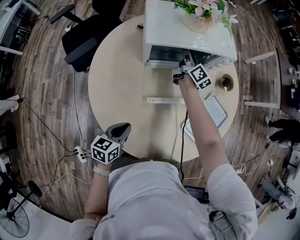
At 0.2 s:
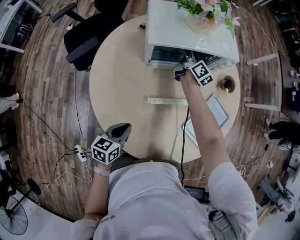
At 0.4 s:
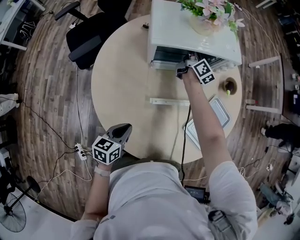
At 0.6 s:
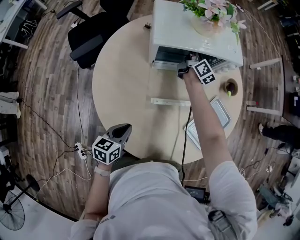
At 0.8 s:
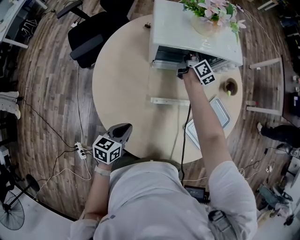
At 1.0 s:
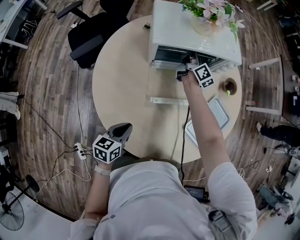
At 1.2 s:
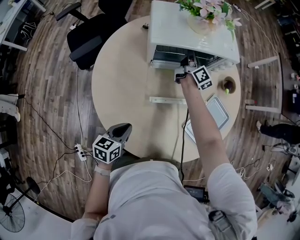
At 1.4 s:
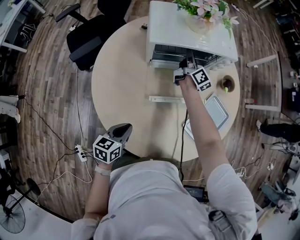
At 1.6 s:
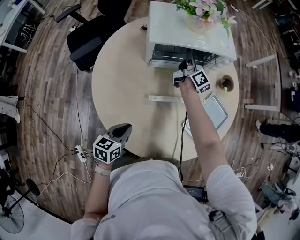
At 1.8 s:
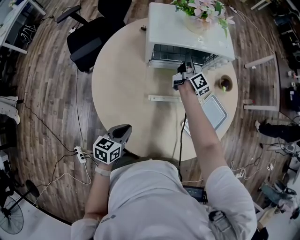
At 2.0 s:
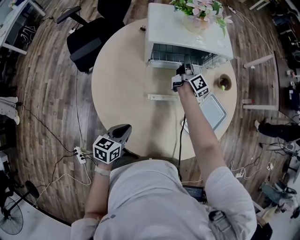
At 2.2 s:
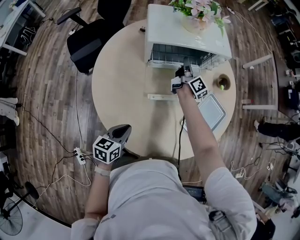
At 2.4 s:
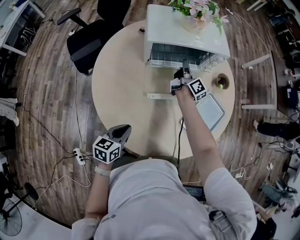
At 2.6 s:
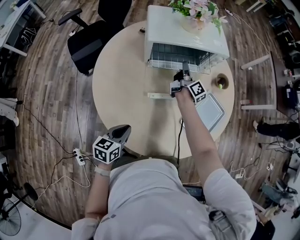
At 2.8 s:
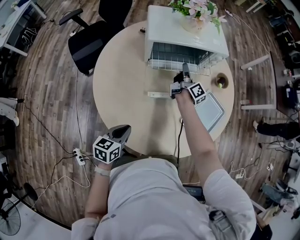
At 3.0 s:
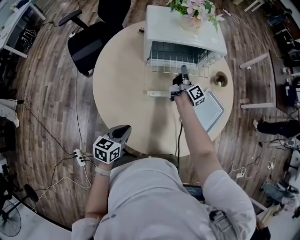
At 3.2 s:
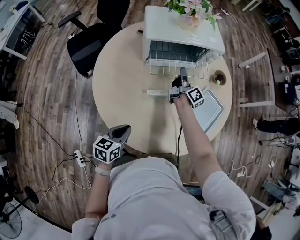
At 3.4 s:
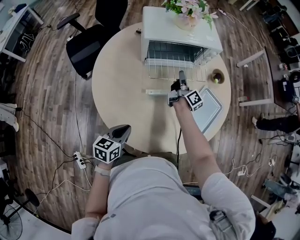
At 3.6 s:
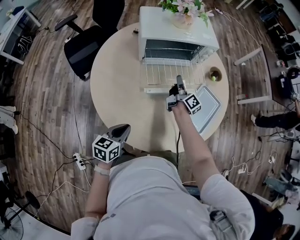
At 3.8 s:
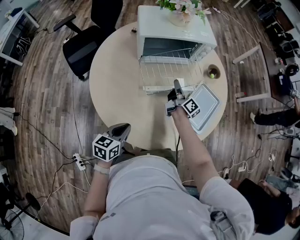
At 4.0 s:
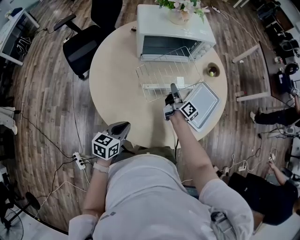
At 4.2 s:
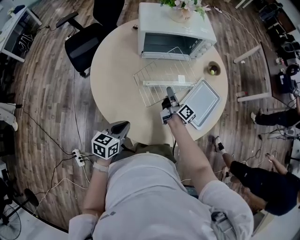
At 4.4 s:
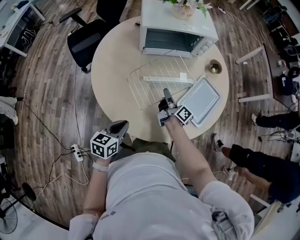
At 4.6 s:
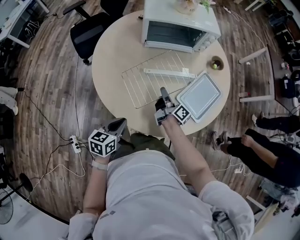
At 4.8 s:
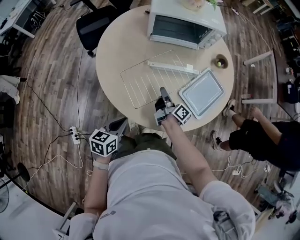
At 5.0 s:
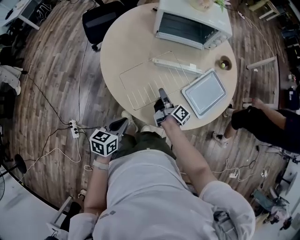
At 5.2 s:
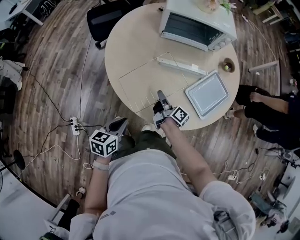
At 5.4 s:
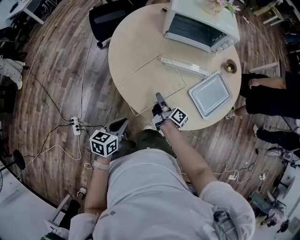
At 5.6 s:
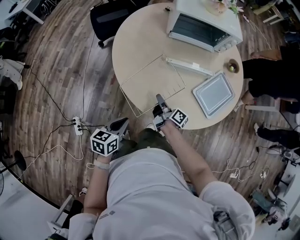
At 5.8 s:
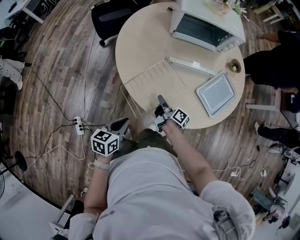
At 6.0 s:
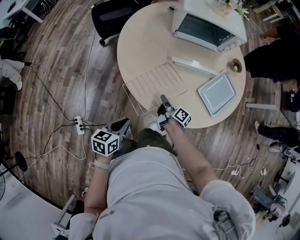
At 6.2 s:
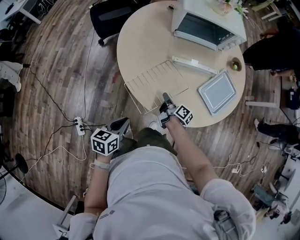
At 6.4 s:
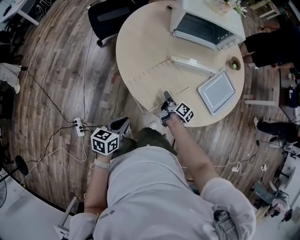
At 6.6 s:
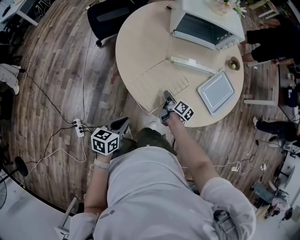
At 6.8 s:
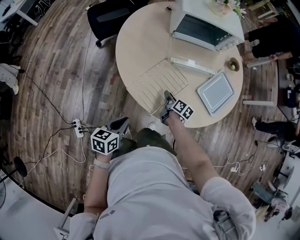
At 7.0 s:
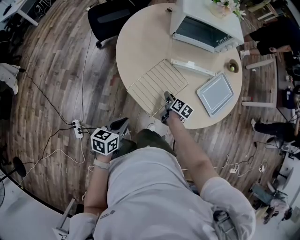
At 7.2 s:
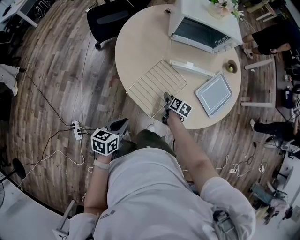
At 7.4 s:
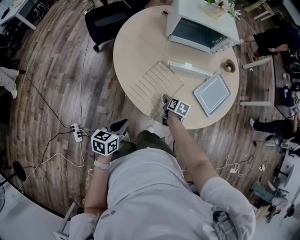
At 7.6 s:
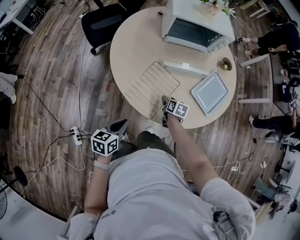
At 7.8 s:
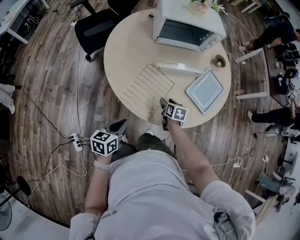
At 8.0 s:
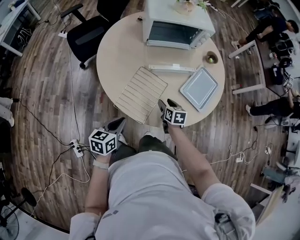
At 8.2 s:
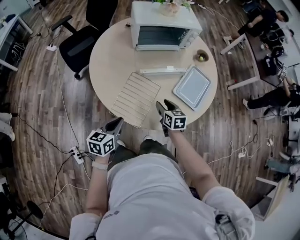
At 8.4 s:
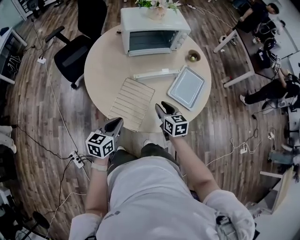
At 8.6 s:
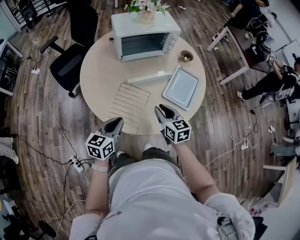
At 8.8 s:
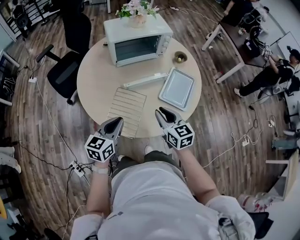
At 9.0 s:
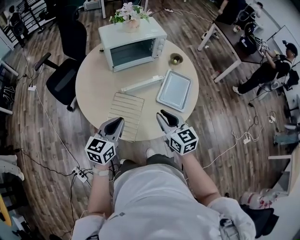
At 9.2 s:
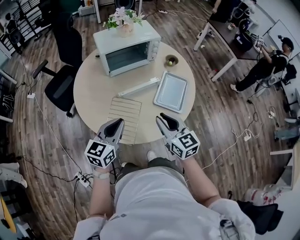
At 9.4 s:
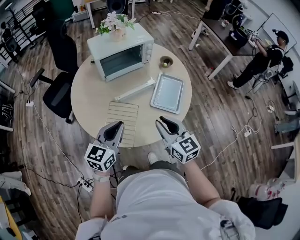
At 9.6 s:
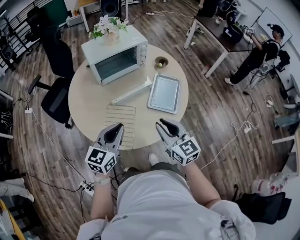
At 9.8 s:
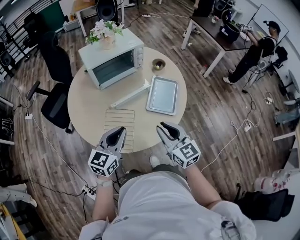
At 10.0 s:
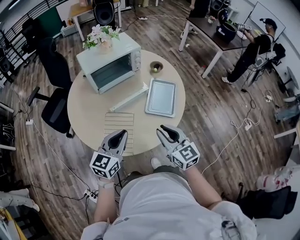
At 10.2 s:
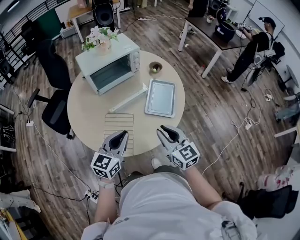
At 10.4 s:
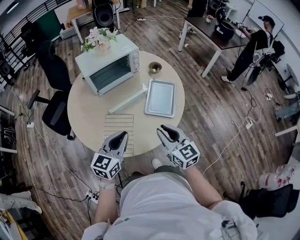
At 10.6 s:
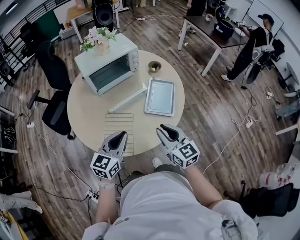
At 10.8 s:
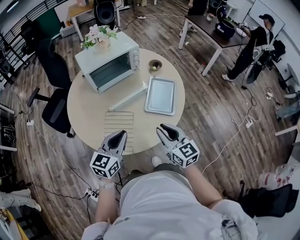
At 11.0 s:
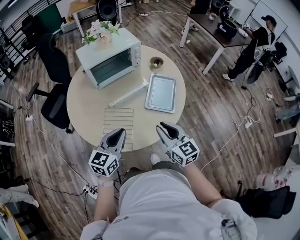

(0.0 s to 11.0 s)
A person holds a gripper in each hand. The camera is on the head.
0.0 s - 1.6 s: The right gripper closes.
1.6 s - 3.2 s: The right gripper is displaced backward by roughly 10 cm, while the left gripper moves roughly 5 cm.
3.2 s - 4.8 s: The left gripper travels backward and to the right by approximately 15 cm, while the right gripper goes roughly 25 cm backward, and turns by roughly 30 degrees.
4.8 s - 6.2 s: The left gripper travels to the left and backward by some 10 cm; the right gripper shifts roughly 15 cm downward, to the left and backward, and rotates some 20 degrees.
6.2 s - 7.8 s: The right gripper heads to the right, covering roughly 5 cm, points its fingers about 30 degrees further downward, and opens its fingers.
7.8 s - 9.4 s: The right gripper shifts approximately 30 cm upward, points its fingers about 40 degrees further upward, and closes its fingers; the left gripper heads upward, forward and to the right, covering approximately 25 cm, and turns by some 40 degrees.
9.4 s - 11.0 s: The grippers move only a little.

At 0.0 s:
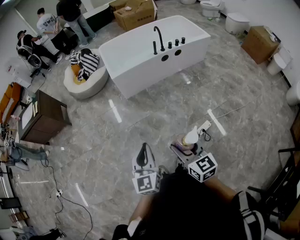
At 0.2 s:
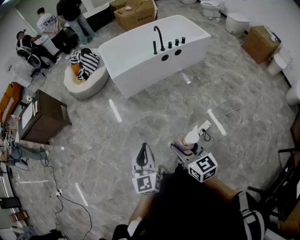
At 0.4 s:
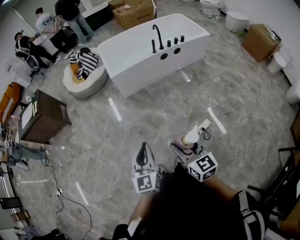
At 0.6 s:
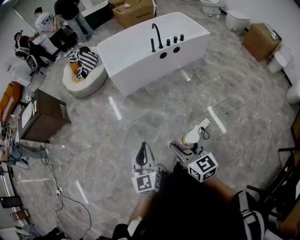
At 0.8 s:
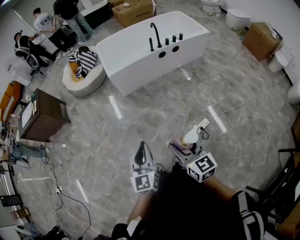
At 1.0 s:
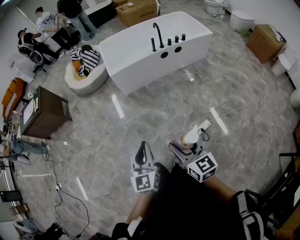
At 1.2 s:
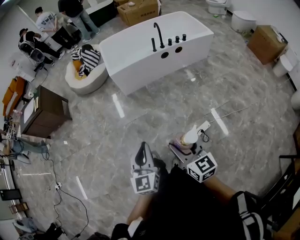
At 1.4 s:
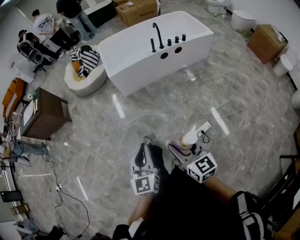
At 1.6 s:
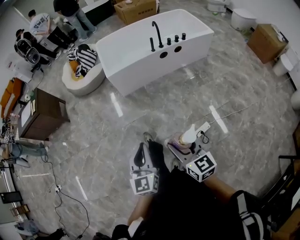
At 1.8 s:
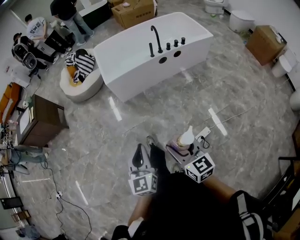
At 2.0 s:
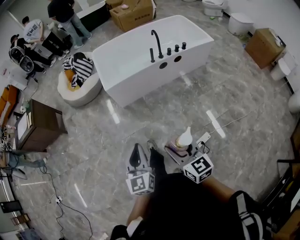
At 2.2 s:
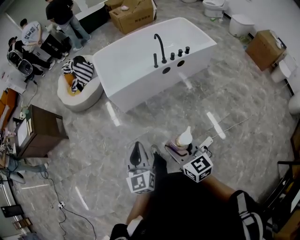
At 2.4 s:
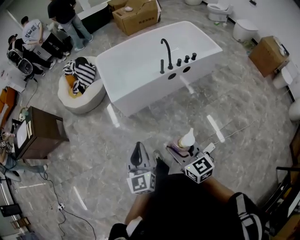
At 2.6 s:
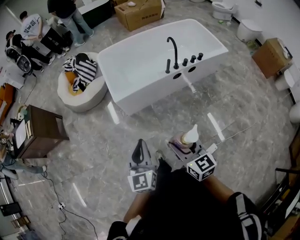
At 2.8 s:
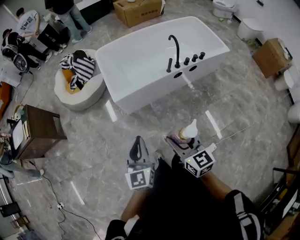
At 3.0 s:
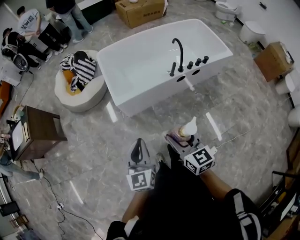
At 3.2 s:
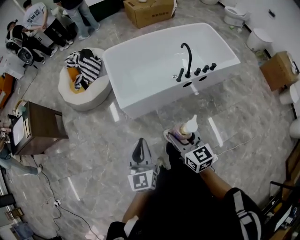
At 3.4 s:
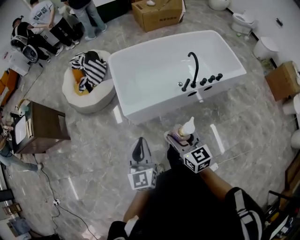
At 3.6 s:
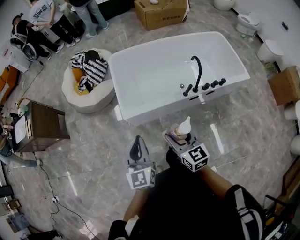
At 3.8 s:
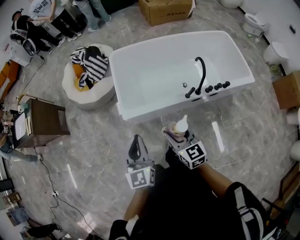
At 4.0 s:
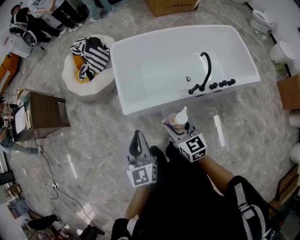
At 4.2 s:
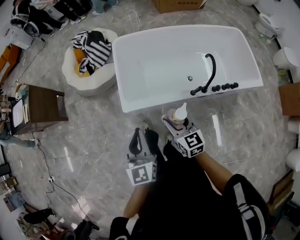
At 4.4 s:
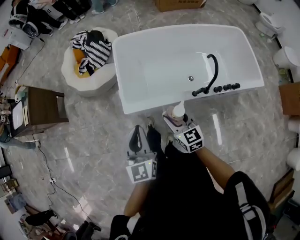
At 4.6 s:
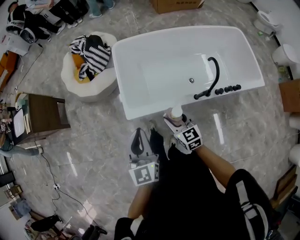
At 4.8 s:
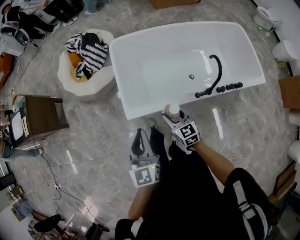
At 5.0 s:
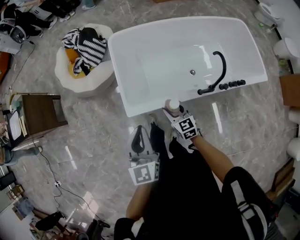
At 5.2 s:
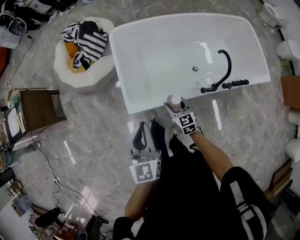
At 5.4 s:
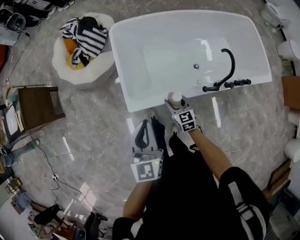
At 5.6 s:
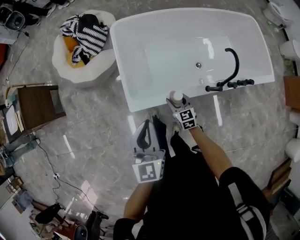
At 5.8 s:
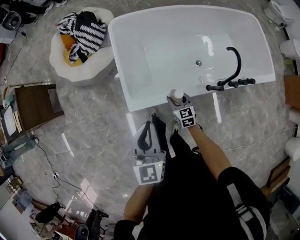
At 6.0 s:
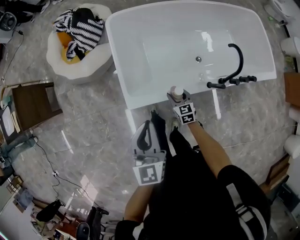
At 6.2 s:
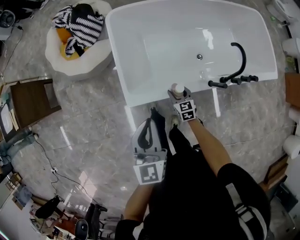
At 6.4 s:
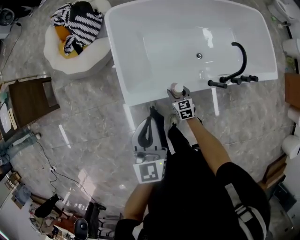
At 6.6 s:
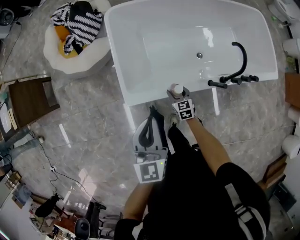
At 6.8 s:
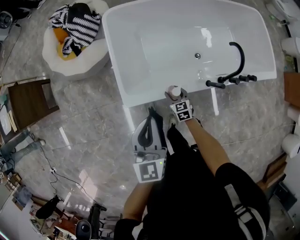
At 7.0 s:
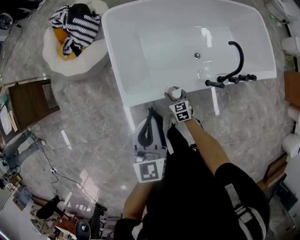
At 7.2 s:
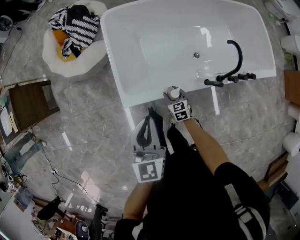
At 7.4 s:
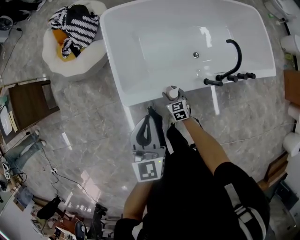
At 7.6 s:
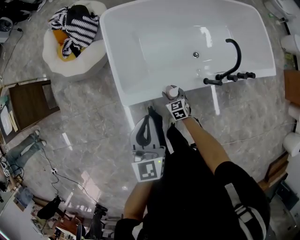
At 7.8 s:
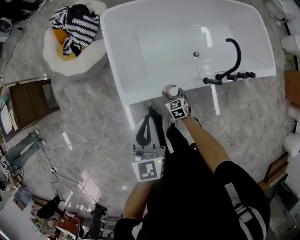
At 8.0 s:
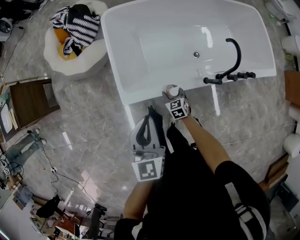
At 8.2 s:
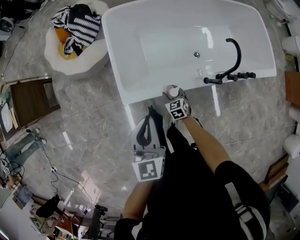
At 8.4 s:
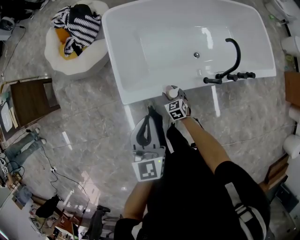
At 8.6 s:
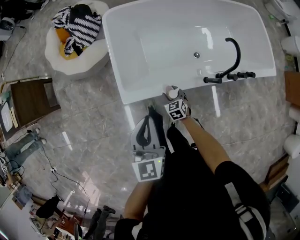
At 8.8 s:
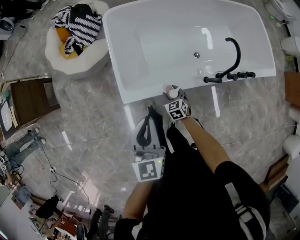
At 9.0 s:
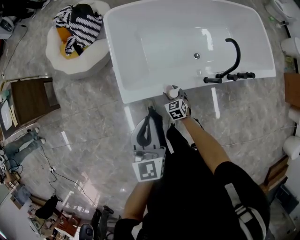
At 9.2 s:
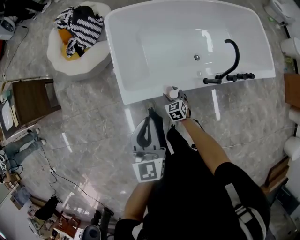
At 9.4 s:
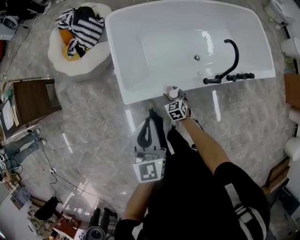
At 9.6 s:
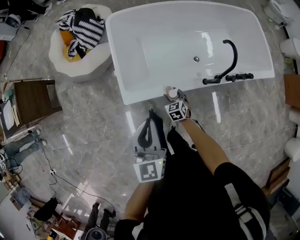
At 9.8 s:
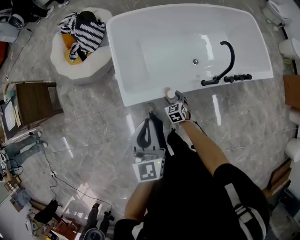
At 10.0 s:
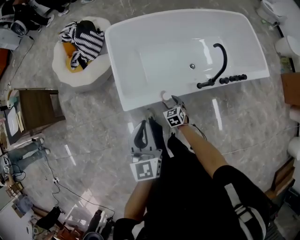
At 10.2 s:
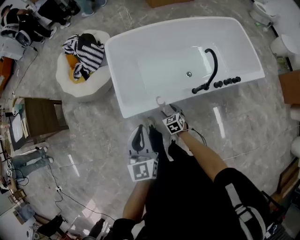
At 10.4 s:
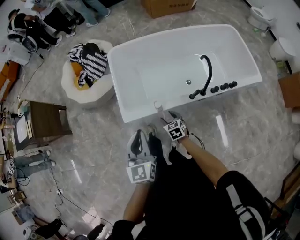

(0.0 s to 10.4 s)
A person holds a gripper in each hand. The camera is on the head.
0.0 s - 1.4 s: Both grippers travel together to the right, approximately 10 cm.
1.4 s - 3.0 s: The pair of grippers is taken forward, some 50 cm.
3.0 s - 4.4 s: Both grippers move forward, some 35 cm.
4.4 s - 6.0 s: The right gripper shifts about 30 cm downward and forward, while the left gripper travels forward and downward by some 15 cm.
6.0 s - 9.0 s: There are only small adjustments of the grippers.
9.0 s - 10.4 s: The left gripper moves backward and upward, roughly 10 cm, while the right gripper moves upward and backward, some 15 cm.

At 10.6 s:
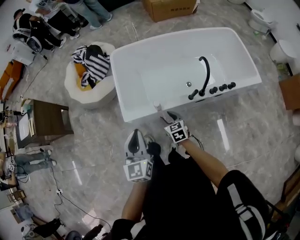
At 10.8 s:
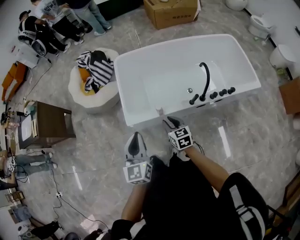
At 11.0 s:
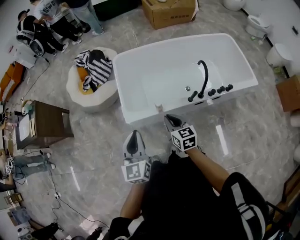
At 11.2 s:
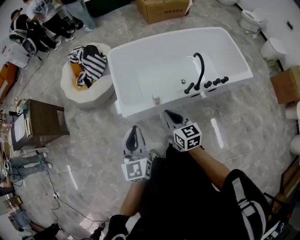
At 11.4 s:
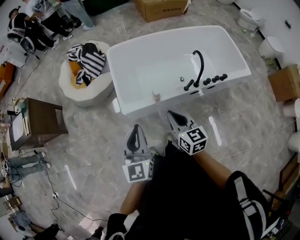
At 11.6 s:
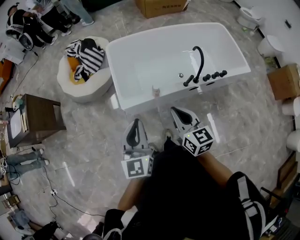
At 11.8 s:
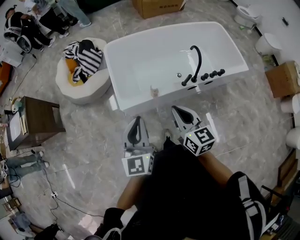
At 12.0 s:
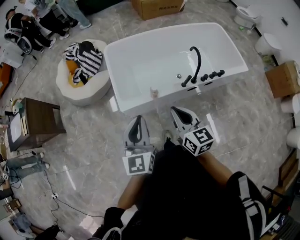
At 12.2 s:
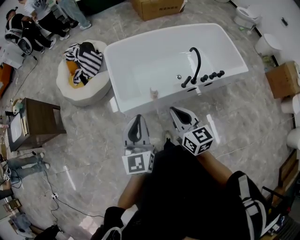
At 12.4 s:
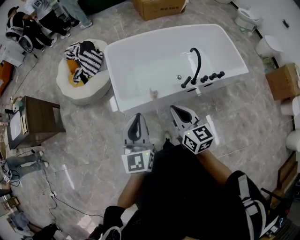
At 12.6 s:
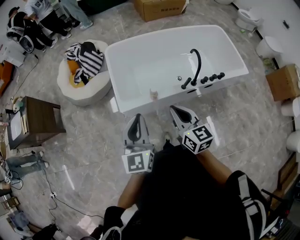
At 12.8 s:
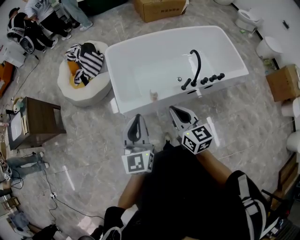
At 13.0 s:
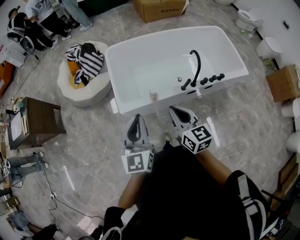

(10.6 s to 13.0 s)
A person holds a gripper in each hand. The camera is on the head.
10.6 s - 11.8 s: The left gripper shifts roughly 10 cm upward and backward. The right gripper is displaced upward and backward by about 30 cm, turns by approximately 30 degrees, and closes its fingers.
11.8 s - 13.0 s: The grippers stay close to where they were, moving slightly.
